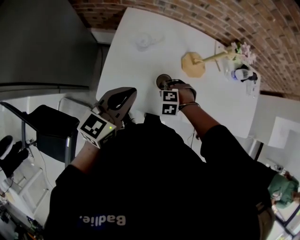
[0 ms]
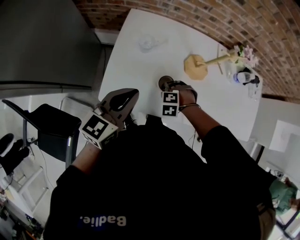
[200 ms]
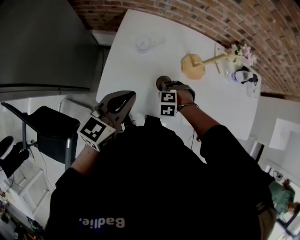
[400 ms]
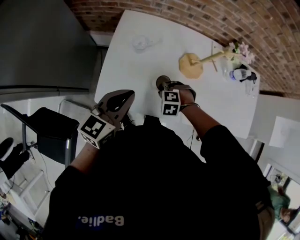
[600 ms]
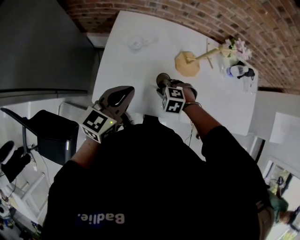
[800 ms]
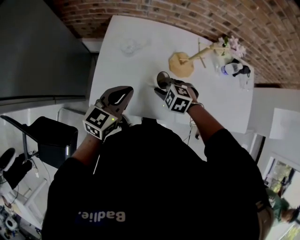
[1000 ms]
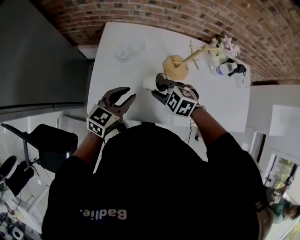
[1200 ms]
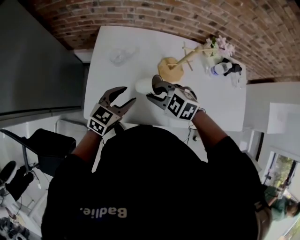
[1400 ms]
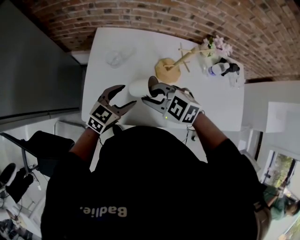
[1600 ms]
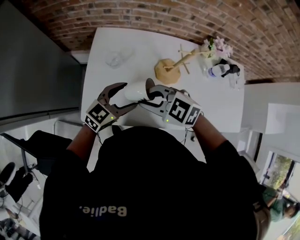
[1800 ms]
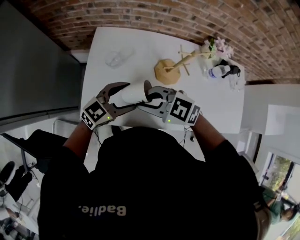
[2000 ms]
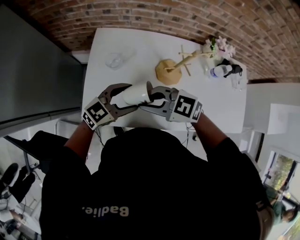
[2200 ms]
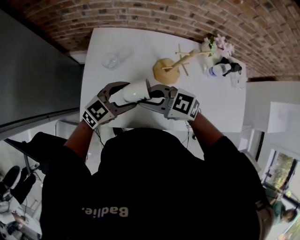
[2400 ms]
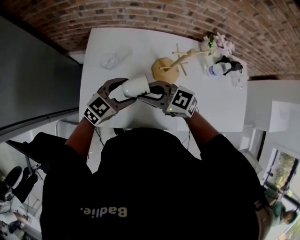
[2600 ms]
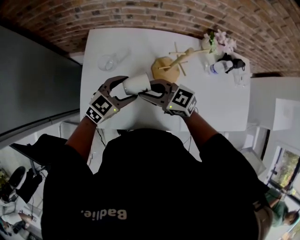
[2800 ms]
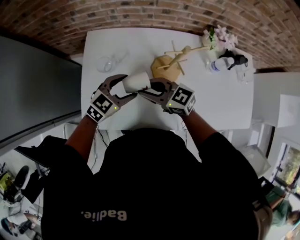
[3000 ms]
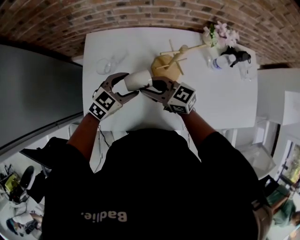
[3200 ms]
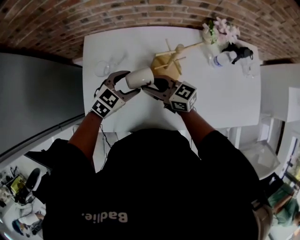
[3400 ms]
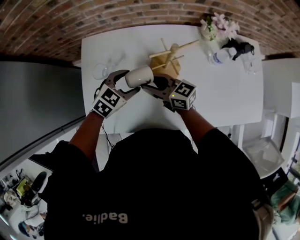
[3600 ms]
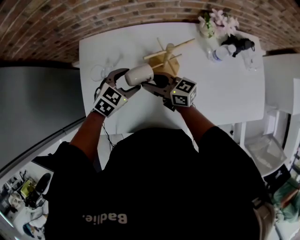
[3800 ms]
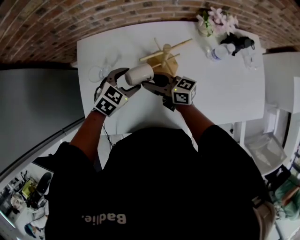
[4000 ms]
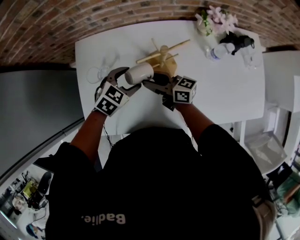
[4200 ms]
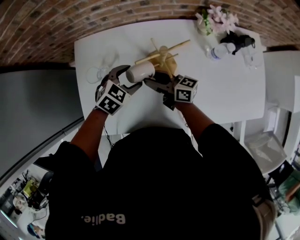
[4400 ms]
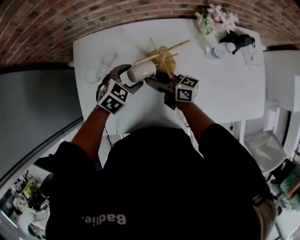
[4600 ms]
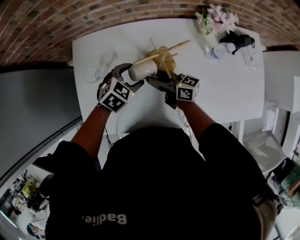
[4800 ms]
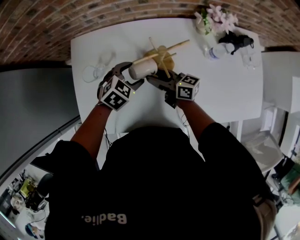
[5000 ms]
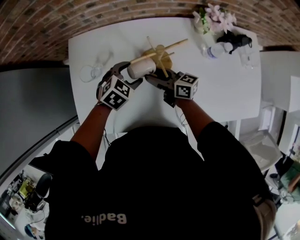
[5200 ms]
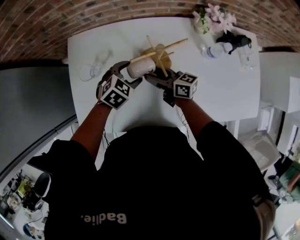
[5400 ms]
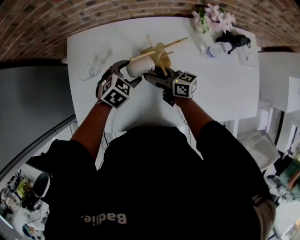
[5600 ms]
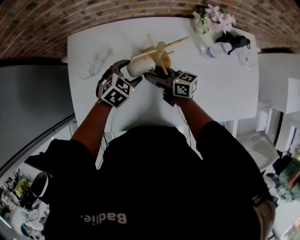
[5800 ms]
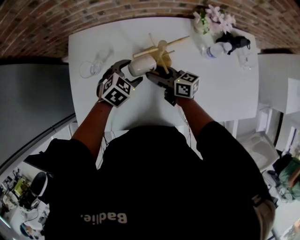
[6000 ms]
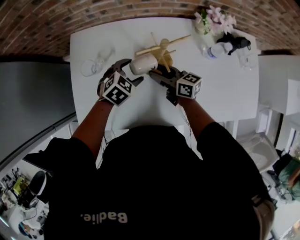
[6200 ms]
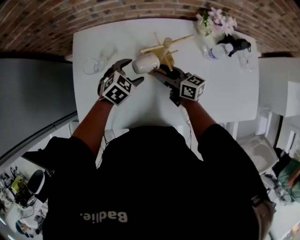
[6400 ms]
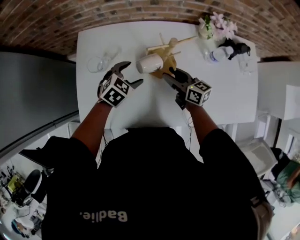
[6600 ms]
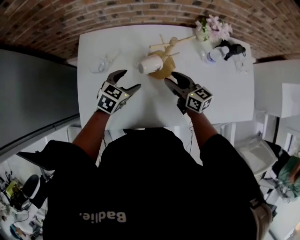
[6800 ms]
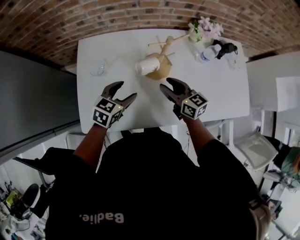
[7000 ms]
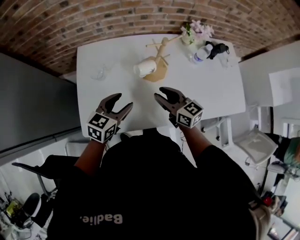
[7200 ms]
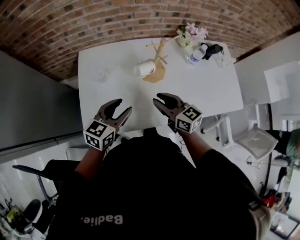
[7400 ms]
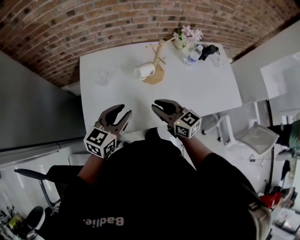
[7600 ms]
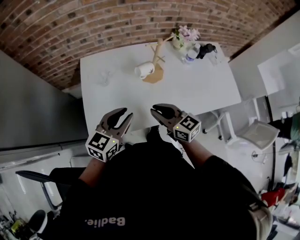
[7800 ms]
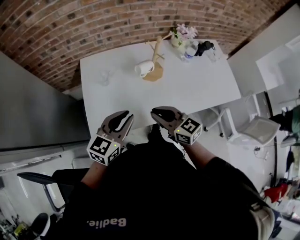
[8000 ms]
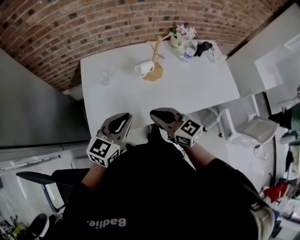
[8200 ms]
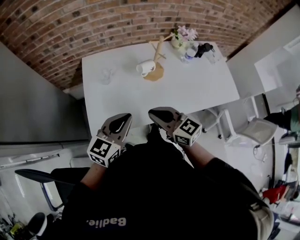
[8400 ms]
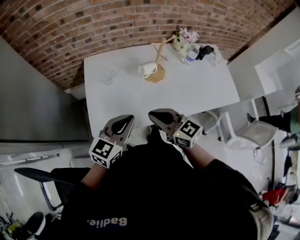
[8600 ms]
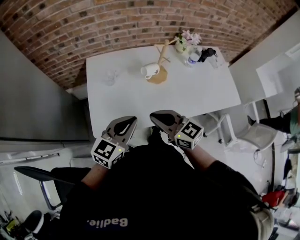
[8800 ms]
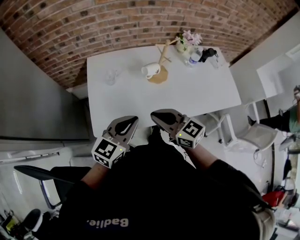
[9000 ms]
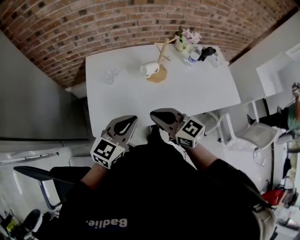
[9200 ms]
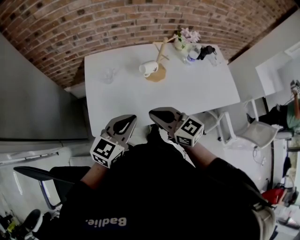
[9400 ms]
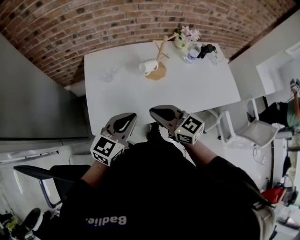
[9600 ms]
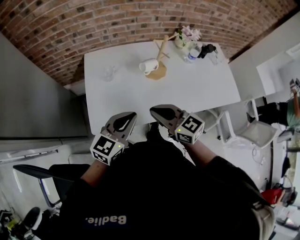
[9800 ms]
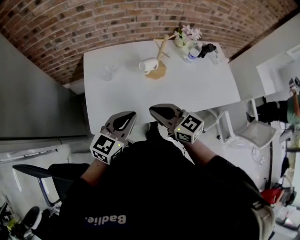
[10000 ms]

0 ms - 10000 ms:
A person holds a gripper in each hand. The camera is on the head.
0 ms - 1400 ms: The right gripper heads upward, covering about 20 cm, and angles its fingers upward, by about 30 degrees. The left gripper moves about 10 cm, and opens its fingers.
1400 ms - 2800 ms: The left gripper moves some 10 cm; the right gripper ends up roughly 5 cm from where it was, and tips its fingers upward by approximately 30 degrees.
2800 ms - 4200 ms: The right gripper moves roughly 15 cm, turns by approximately 40 degrees, and opens, while the left gripper shifts by roughly 10 cm, and swivels about 20 degrees.
4200 ms - 5800 ms: The left gripper changes place by about 5 cm.
5800 ms - 7200 ms: The left gripper heads backward, upward and to the left, covering approximately 20 cm, and changes its angle by about 30 degrees. Meanwhile the right gripper goes roughly 15 cm backward and upward, and turns by roughly 30 degrees.
7200 ms - 8600 ms: The right gripper moves backward, to the left and upward, approximately 20 cm, and closes its fingers; the left gripper travels backward and upward by roughly 20 cm, and closes up.
8600 ms - 10000 ms: Both grippers stay put.

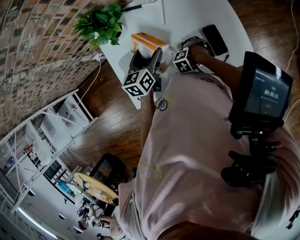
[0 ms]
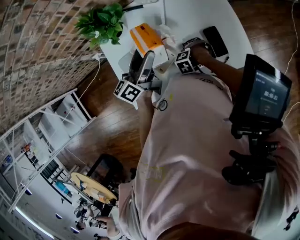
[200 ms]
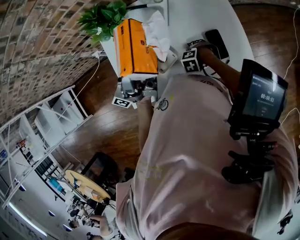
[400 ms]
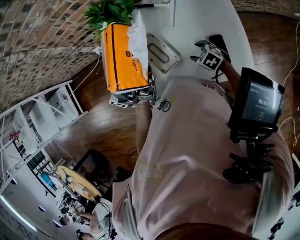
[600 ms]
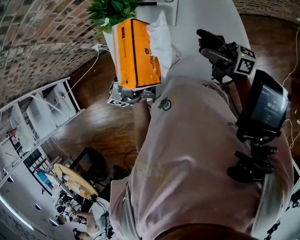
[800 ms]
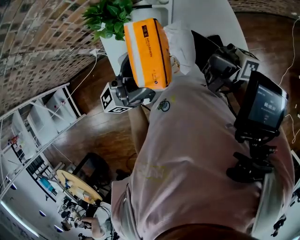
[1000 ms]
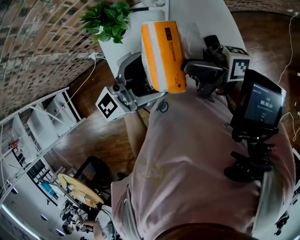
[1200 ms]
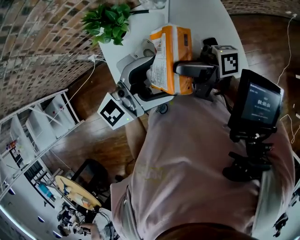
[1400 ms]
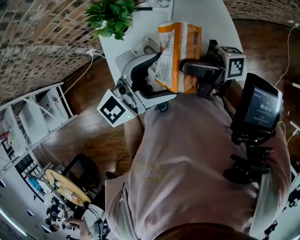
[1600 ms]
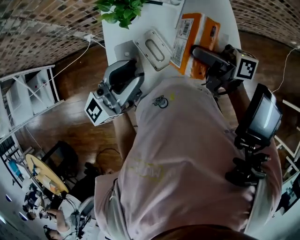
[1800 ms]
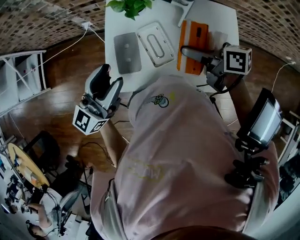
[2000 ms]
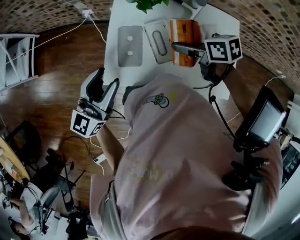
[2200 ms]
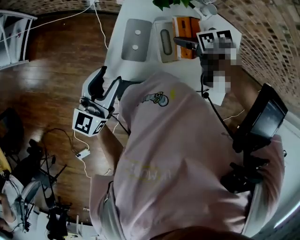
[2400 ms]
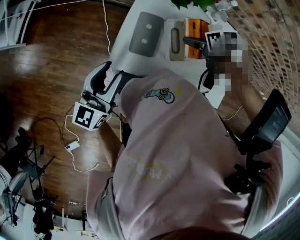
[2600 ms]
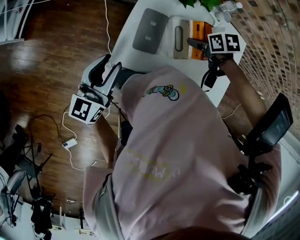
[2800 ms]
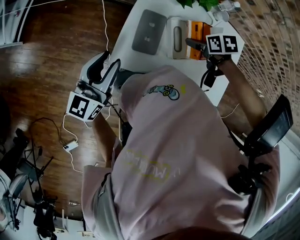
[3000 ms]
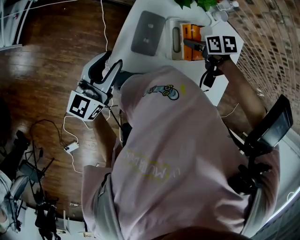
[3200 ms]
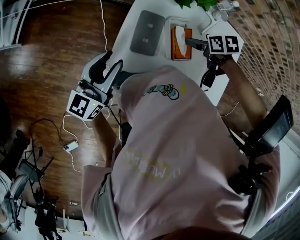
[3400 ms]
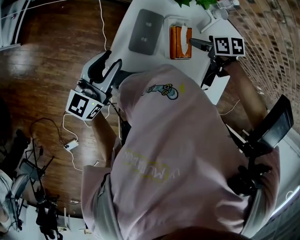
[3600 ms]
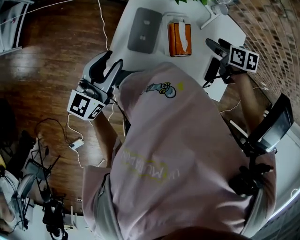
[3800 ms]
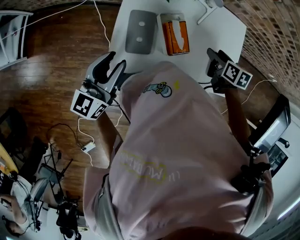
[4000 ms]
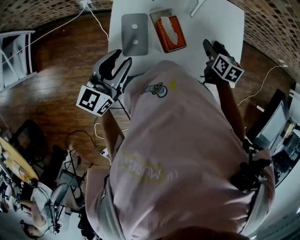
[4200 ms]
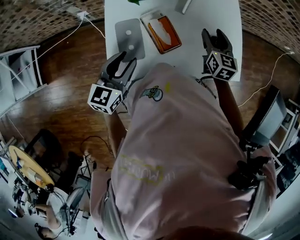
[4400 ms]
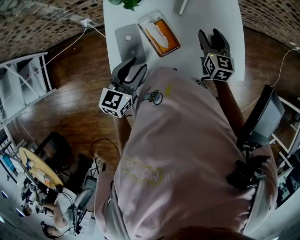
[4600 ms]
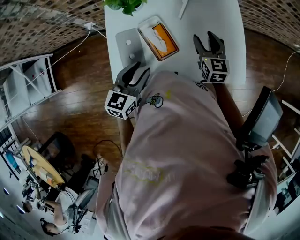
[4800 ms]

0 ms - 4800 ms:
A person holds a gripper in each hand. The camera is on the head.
0 ms - 1600 ms: The right gripper goes approximately 40 cm upward, and points its fingers approximately 110 degrees further upward. The left gripper travels upward by some 25 cm, and tilts its fingers approximately 40 degrees upward.
1600 ms - 3200 ms: The right gripper is displaced downward by roughly 30 cm, and points its fingers some 100 degrees further downward. Meanwhile the left gripper changes place by approximately 40 cm, turns by some 60 degrees, and closes.
3200 ms - 4800 ms: The right gripper shifts by some 20 cm, tilts its fingers some 50 degrees upward, and closes. Meanwhile the left gripper shifts by approximately 25 cm, and swivels some 40 degrees.

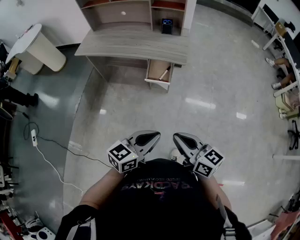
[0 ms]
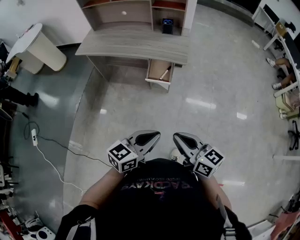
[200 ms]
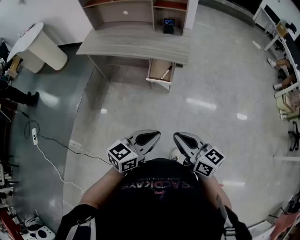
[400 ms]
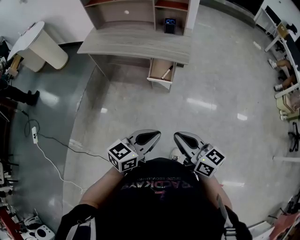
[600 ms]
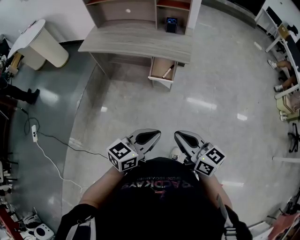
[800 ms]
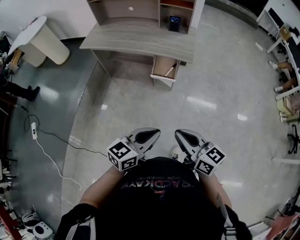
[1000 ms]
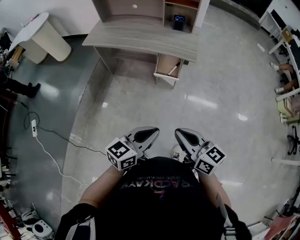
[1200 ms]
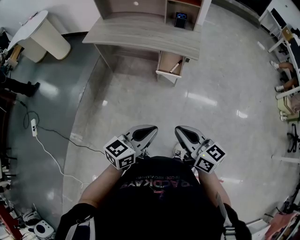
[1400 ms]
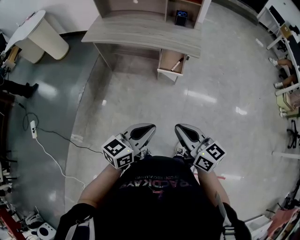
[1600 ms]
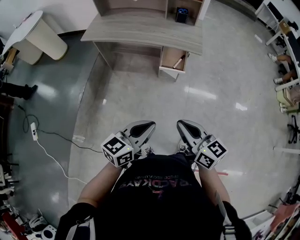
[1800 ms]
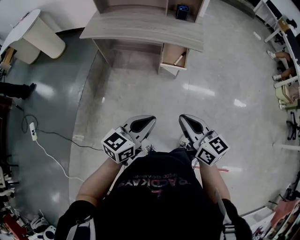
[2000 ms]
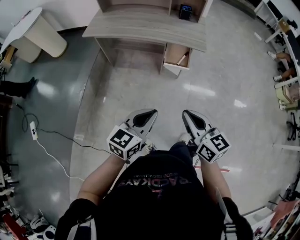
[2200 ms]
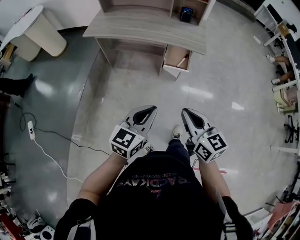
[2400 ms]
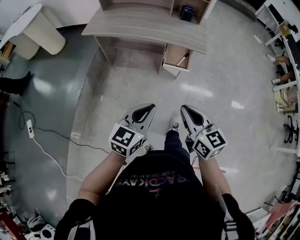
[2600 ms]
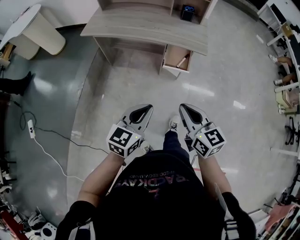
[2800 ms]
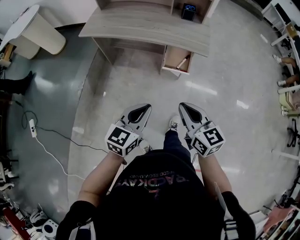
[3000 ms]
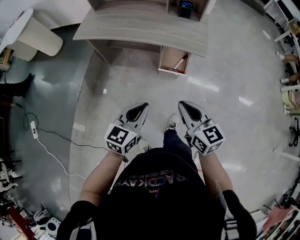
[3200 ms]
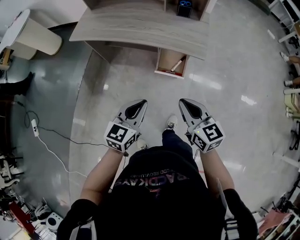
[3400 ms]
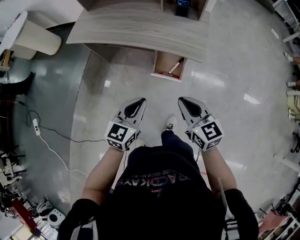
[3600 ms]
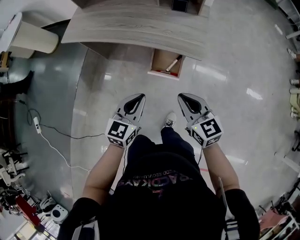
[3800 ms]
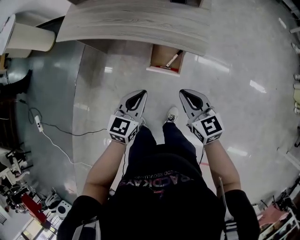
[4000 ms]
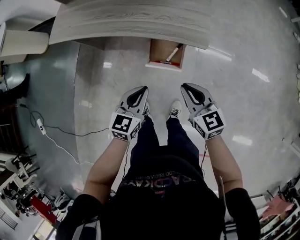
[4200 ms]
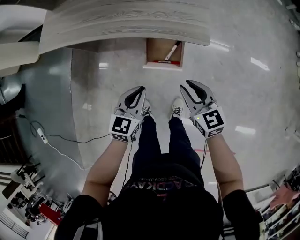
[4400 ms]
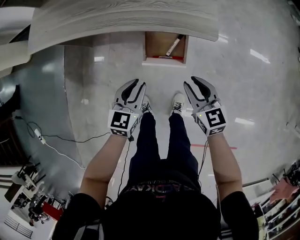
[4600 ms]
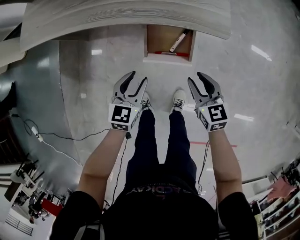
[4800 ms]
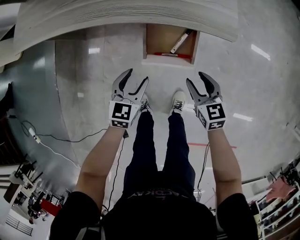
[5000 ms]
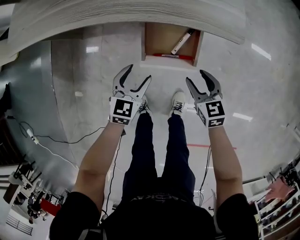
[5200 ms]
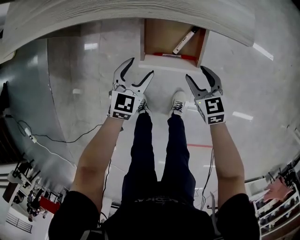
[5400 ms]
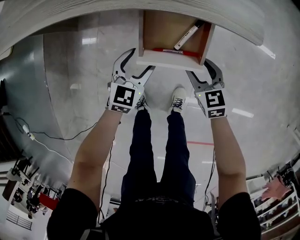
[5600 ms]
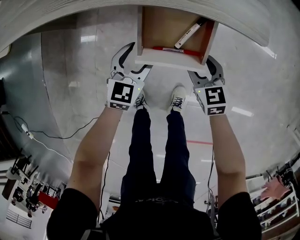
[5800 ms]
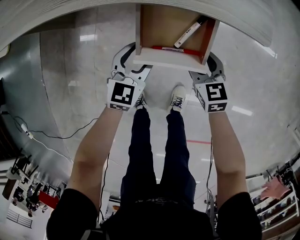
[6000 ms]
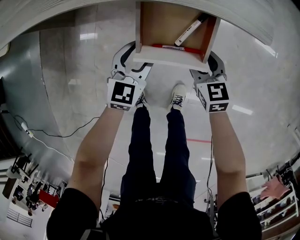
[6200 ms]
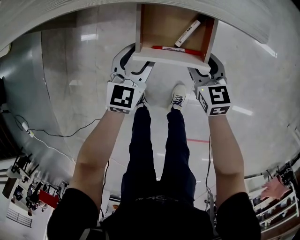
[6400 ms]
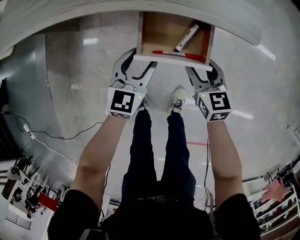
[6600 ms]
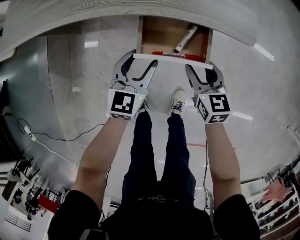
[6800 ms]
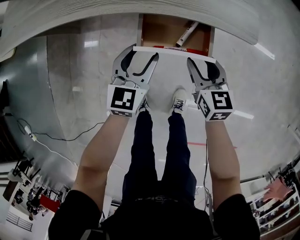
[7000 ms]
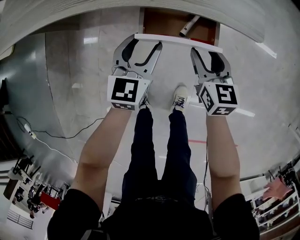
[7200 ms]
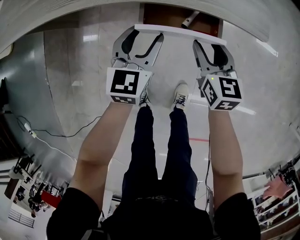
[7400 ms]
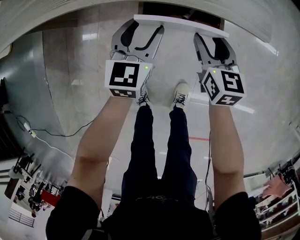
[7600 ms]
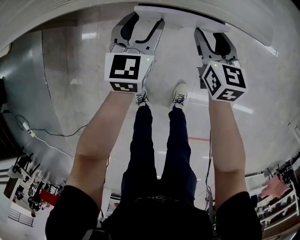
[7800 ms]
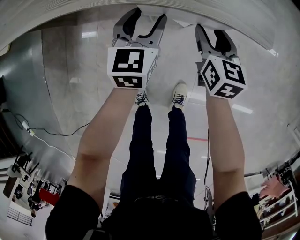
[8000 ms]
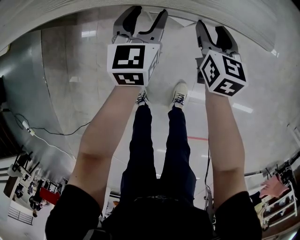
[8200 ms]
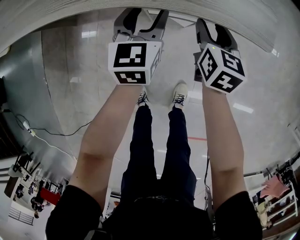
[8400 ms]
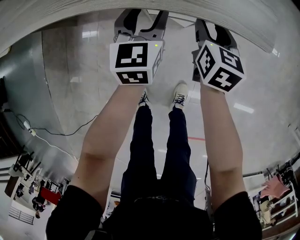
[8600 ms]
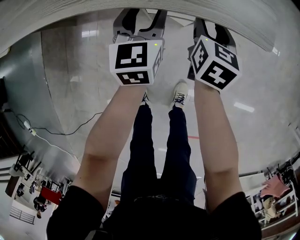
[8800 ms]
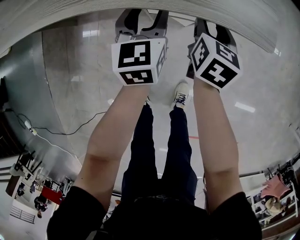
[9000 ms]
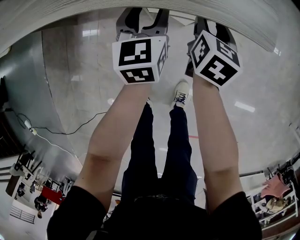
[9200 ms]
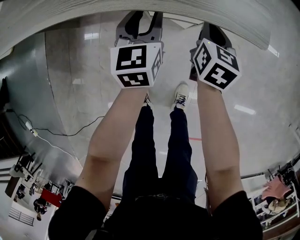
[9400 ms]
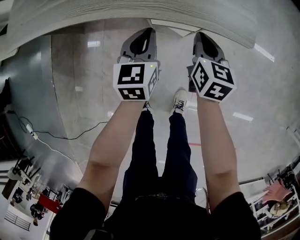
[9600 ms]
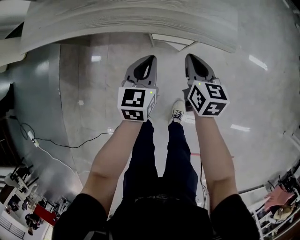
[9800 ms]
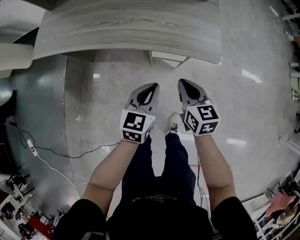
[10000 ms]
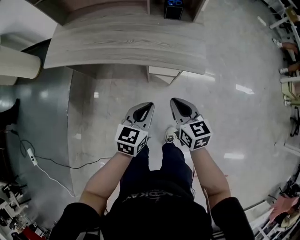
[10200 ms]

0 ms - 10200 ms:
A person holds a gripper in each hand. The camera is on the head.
0 ms - 1400 ms: Both grippers travel together to the left, some 5 cm.
1400 ms - 3000 ms: The left gripper goes approximately 15 cm forward and to the left; the right gripper moves forward, some 10 cm.
3000 ms - 4400 ms: The grippers both shift downward, forward and to the right by about 20 cm.
4400 ms - 5800 ms: The left gripper shifts some 20 cm downward and forward, and opens up, while the right gripper is displaced downward by approximately 20 cm, and opens up.
5800 ms - 7200 ms: Both grippers travel together upward, approximately 5 cm.
7200 ms - 8800 ms: The two grippers go roughly 10 cm forward. The right gripper swivels some 20 degrees.
8800 ms - 10200 ms: The right gripper goes roughly 25 cm backward, upward and to the left, changes its angle by approximately 30 degrees, and closes its fingers. The left gripper heads backward and upward, covering roughly 20 cm, and closes up.
